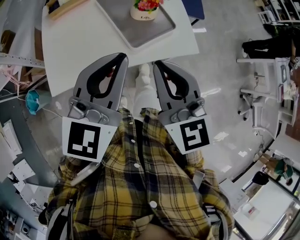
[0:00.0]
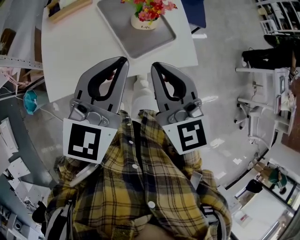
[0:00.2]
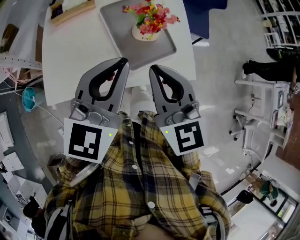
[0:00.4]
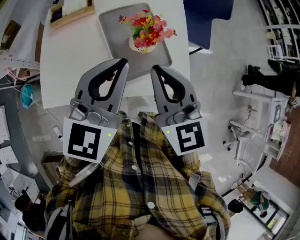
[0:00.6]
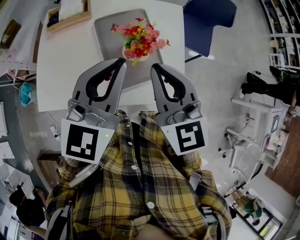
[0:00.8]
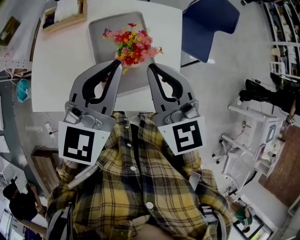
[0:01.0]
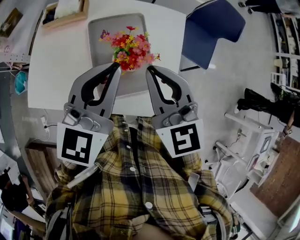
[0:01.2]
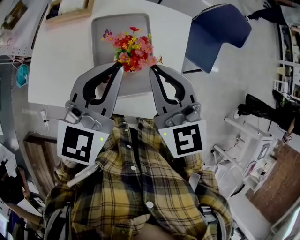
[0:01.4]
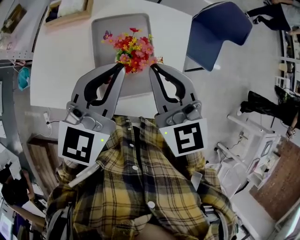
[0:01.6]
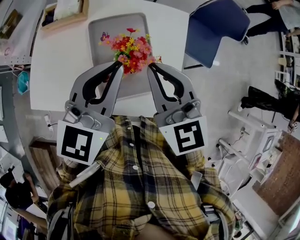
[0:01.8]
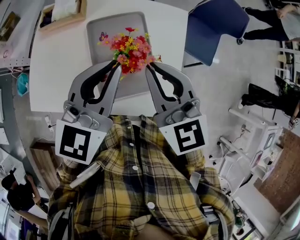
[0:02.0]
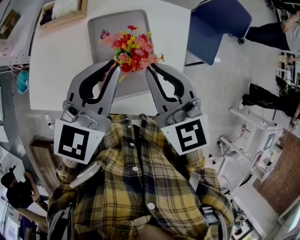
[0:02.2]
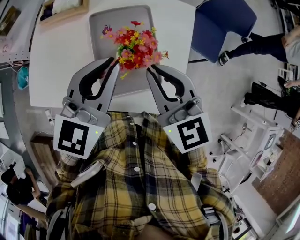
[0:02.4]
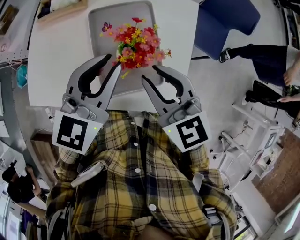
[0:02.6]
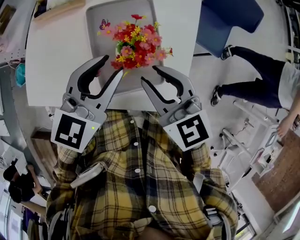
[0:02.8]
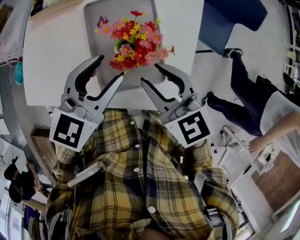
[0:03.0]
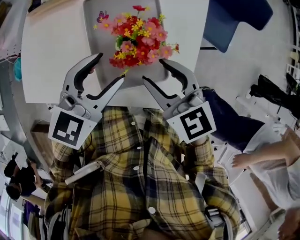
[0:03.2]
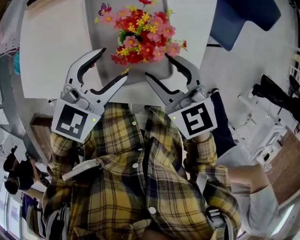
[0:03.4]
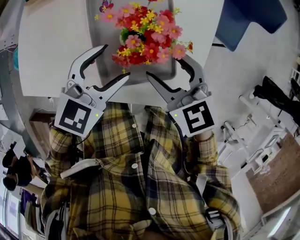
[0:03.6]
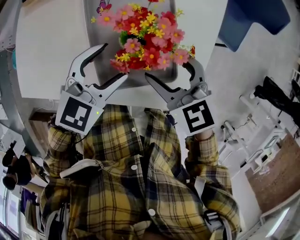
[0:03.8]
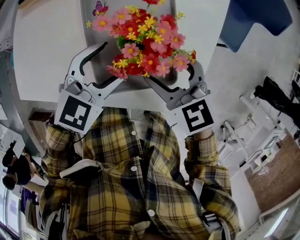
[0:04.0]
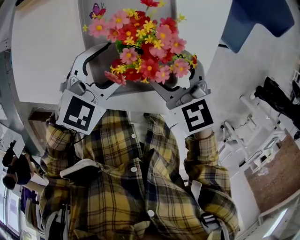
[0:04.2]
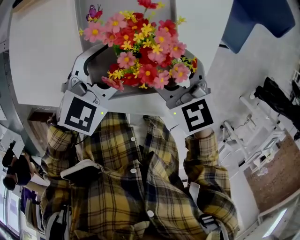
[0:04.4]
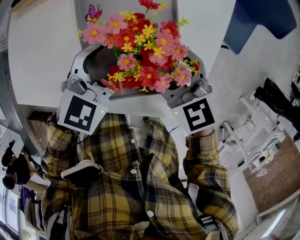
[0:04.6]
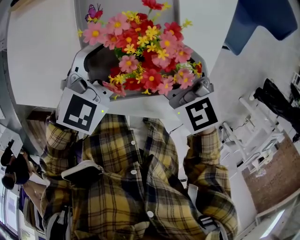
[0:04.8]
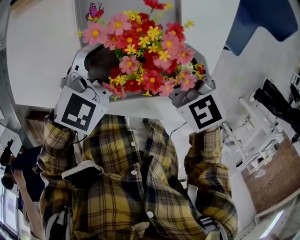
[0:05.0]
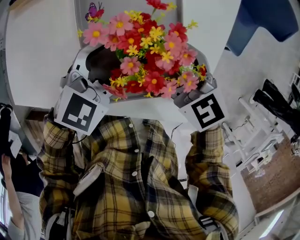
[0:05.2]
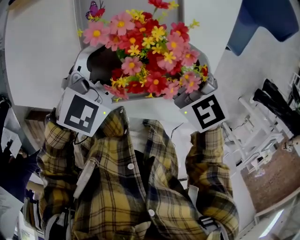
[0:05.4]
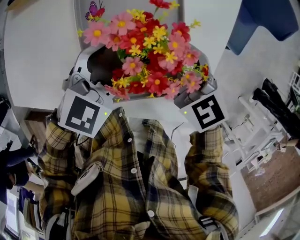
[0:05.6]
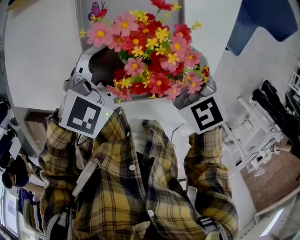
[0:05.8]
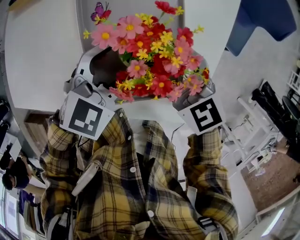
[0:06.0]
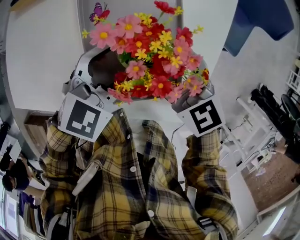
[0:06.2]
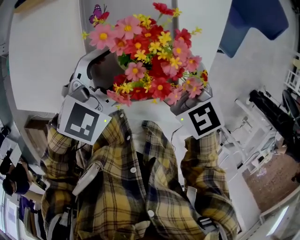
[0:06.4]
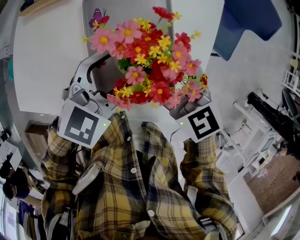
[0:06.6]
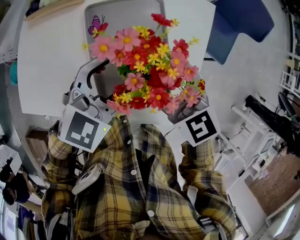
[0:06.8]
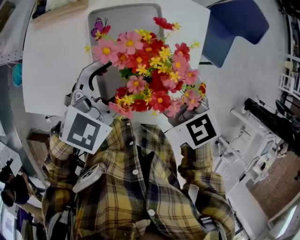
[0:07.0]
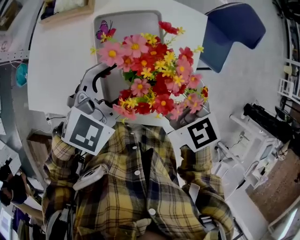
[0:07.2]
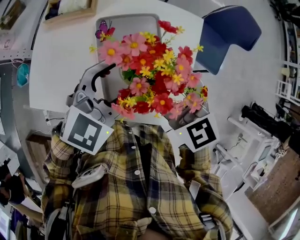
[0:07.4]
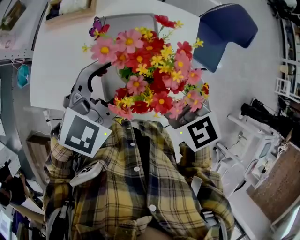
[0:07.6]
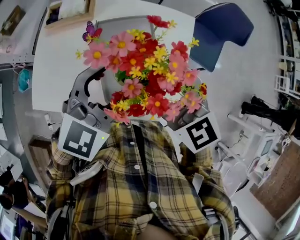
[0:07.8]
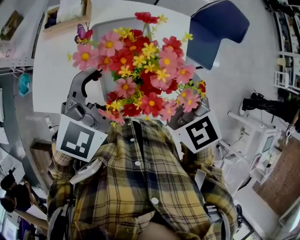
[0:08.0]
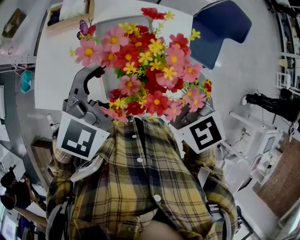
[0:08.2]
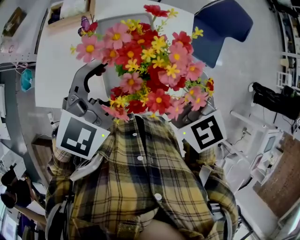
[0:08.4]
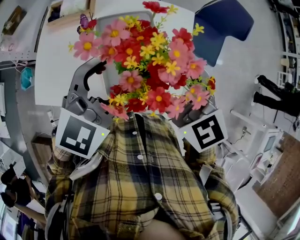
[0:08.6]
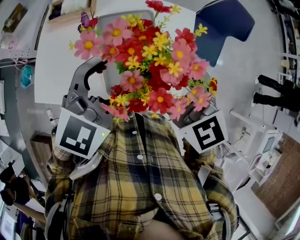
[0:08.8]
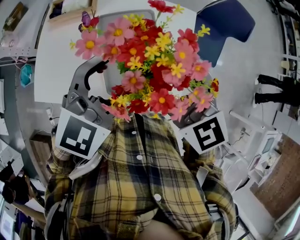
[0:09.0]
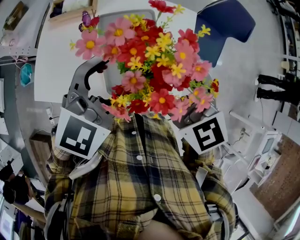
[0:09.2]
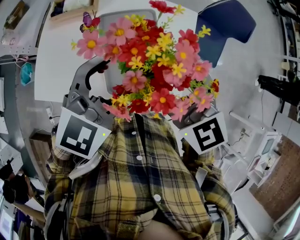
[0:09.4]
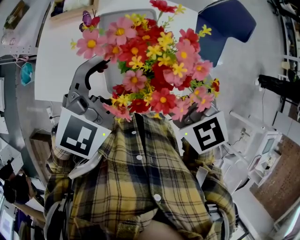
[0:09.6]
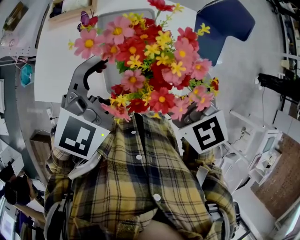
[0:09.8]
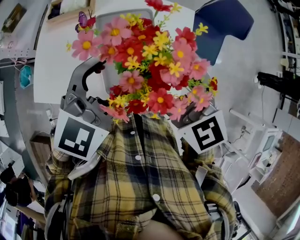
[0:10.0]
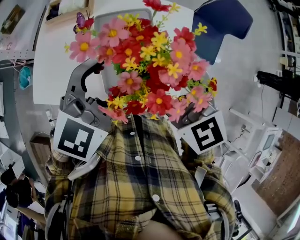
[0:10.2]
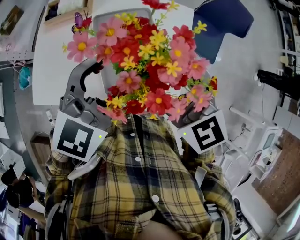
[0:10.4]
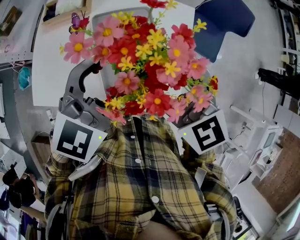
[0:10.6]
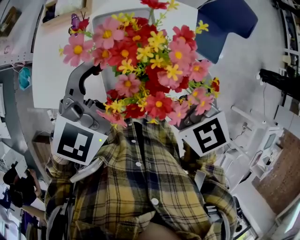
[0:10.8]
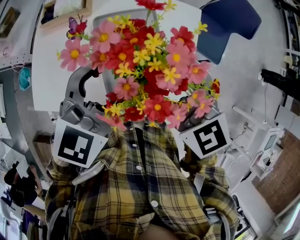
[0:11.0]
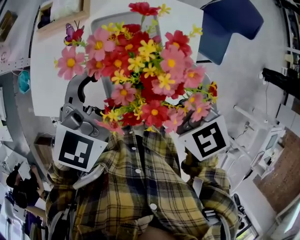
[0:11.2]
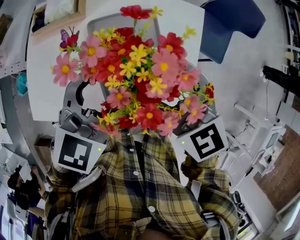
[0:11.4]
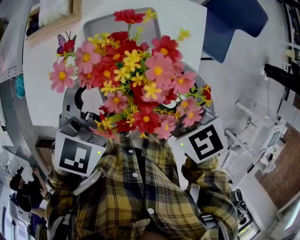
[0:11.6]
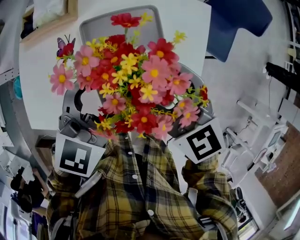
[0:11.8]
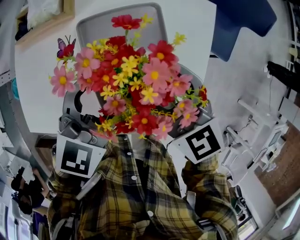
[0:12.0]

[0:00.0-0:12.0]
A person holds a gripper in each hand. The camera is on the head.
0:00.0 to 0:01.6: The grippers both shift forward and to the right by roughly 30 cm. The left gripper swivels roughly 20 degrees. Meanwhile the right gripper rotates some 30 degrees.
0:01.6 to 0:03.0: The grippers both shift downward by some 10 cm. The left gripper opens. Meanwhile the right gripper turns by approximately 20 degrees, and opens up.
0:03.0 to 0:04.4: Both grippers move downward, approximately 15 cm. The right gripper opens up. Meanwhile the left gripper rotates approximately 20 degrees, and opens its fingers.
0:04.4 to 0:07.6: The grippers move only a little.
0:07.6 to 0:10.4: Neither gripper changes place.
0:10.4 to 0:12.0: There are only small adjustments of the grippers.

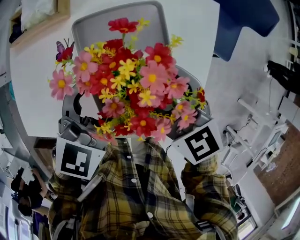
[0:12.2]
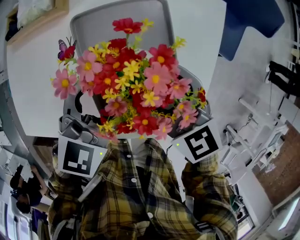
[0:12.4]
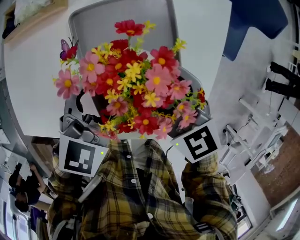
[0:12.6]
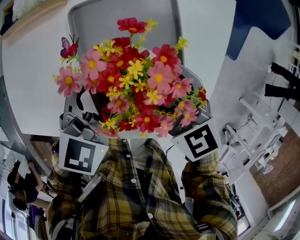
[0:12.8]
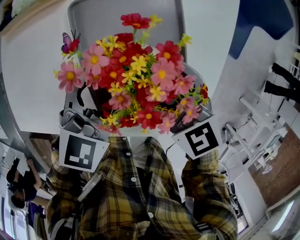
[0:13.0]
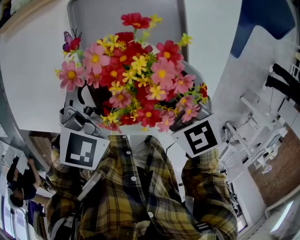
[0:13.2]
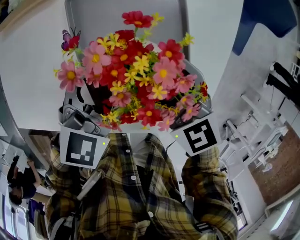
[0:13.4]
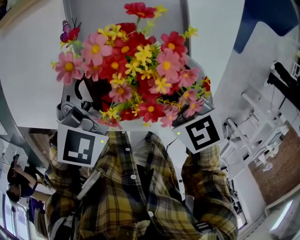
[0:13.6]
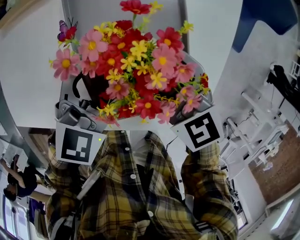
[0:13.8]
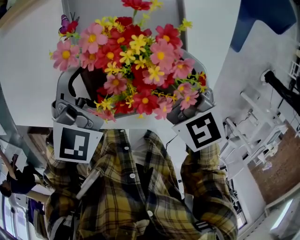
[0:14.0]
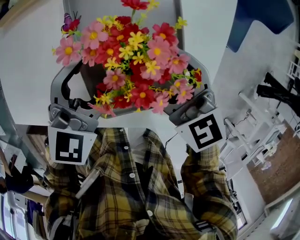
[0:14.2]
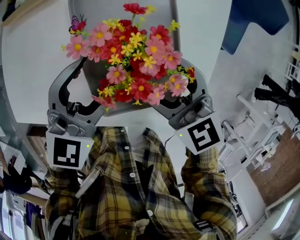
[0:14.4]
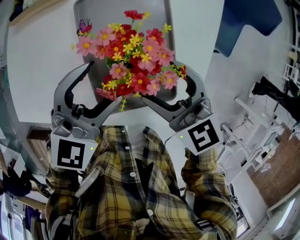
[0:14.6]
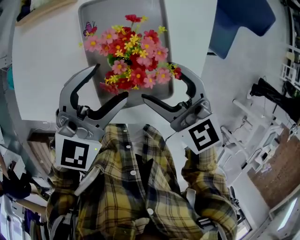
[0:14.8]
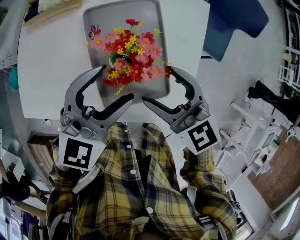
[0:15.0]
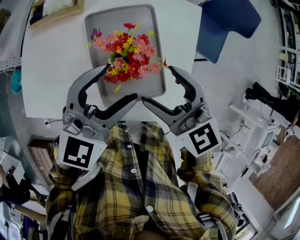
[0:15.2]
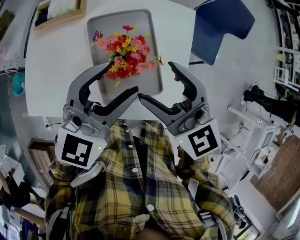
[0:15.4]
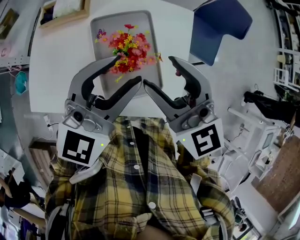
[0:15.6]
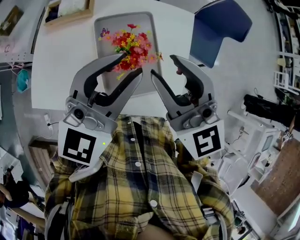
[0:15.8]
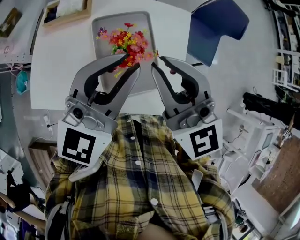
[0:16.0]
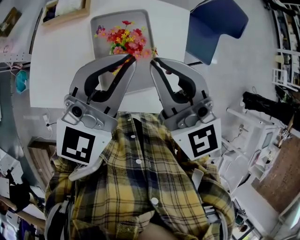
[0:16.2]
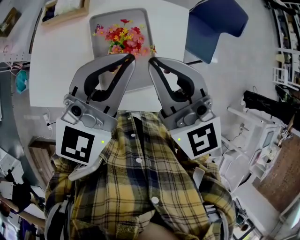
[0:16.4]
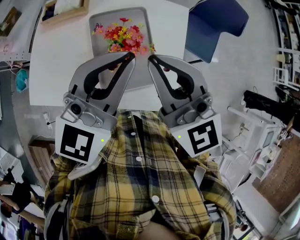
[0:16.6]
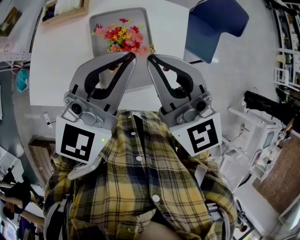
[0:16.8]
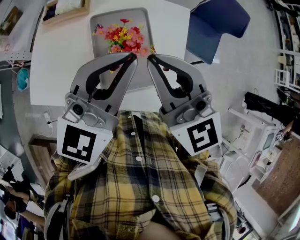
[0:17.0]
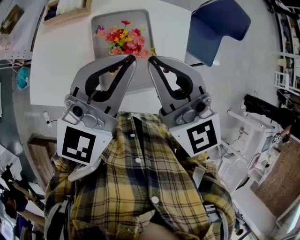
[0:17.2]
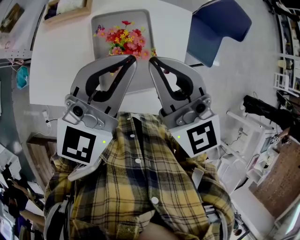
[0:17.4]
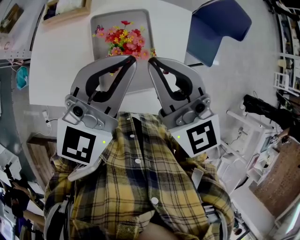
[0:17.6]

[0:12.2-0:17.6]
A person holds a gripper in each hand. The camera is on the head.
0:12.2 to 0:13.6: The grippers stay close to where they were, moving slightly.
0:13.6 to 0:15.0: The grippers both shift upward by approximately 10 cm.
0:15.0 to 0:16.2: Both grippers move upward, roughly 20 cm. The left gripper changes its angle by roughly 20 degrees, and closes up. The right gripper turns by about 30 degrees, and closes.
0:16.2 to 0:17.6: The grippers stay close to where they were, moving slightly.

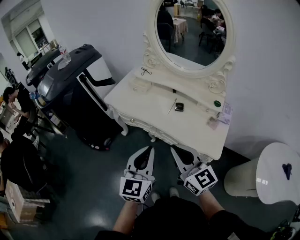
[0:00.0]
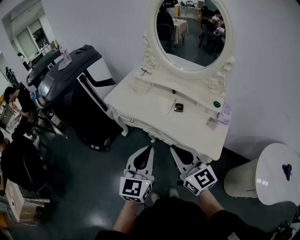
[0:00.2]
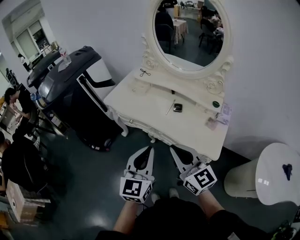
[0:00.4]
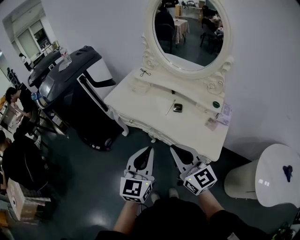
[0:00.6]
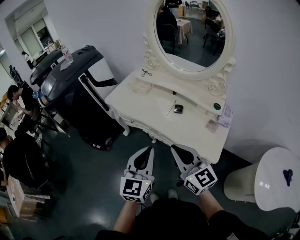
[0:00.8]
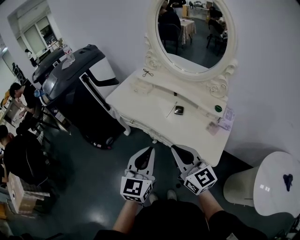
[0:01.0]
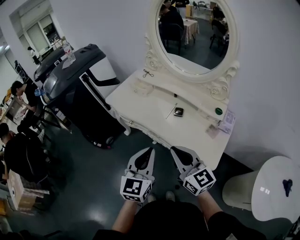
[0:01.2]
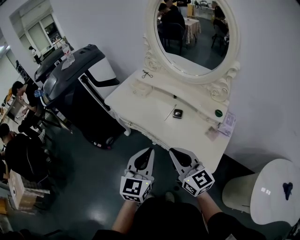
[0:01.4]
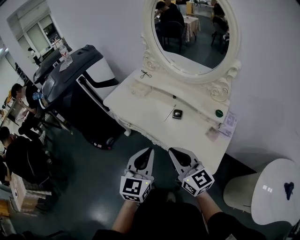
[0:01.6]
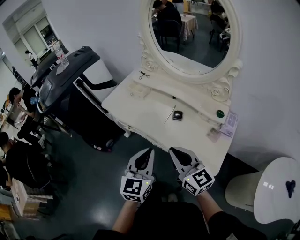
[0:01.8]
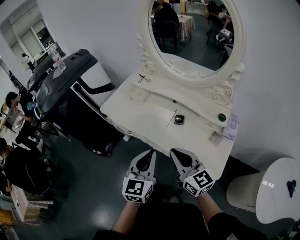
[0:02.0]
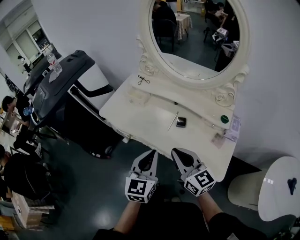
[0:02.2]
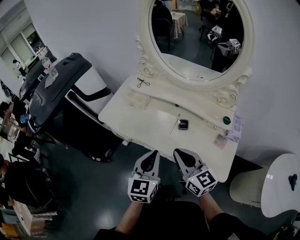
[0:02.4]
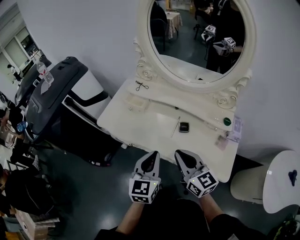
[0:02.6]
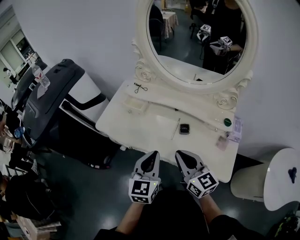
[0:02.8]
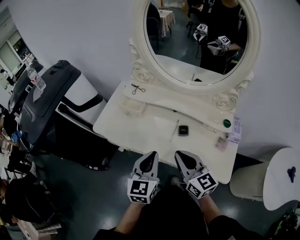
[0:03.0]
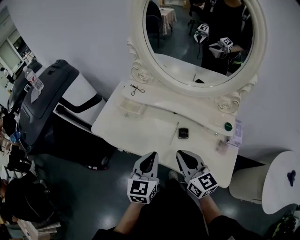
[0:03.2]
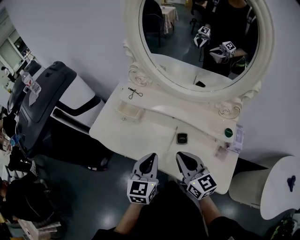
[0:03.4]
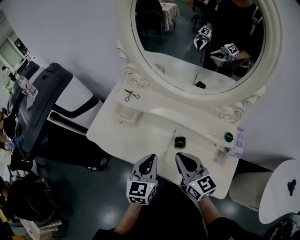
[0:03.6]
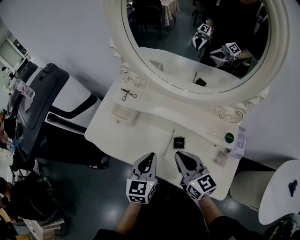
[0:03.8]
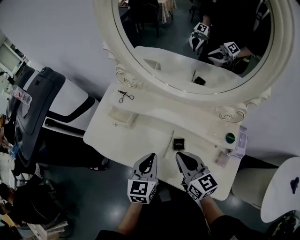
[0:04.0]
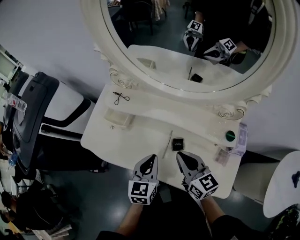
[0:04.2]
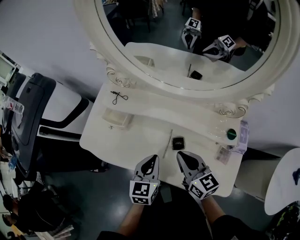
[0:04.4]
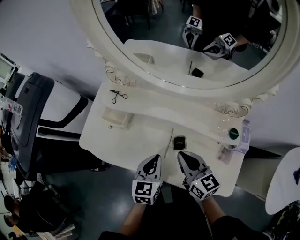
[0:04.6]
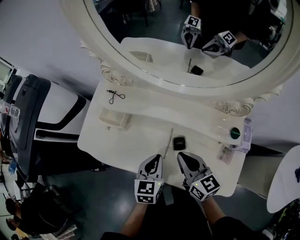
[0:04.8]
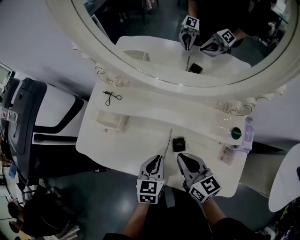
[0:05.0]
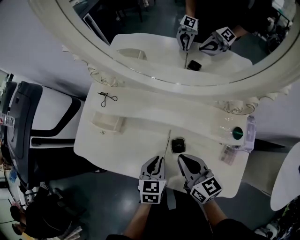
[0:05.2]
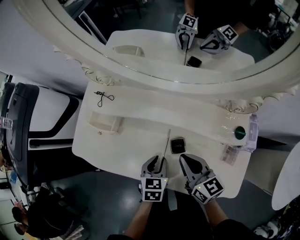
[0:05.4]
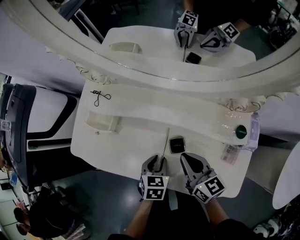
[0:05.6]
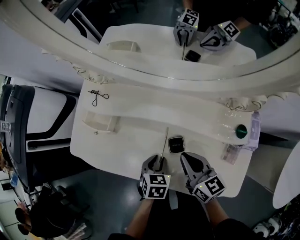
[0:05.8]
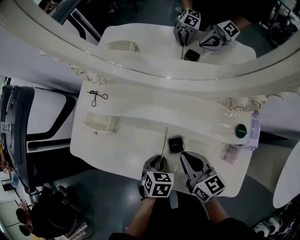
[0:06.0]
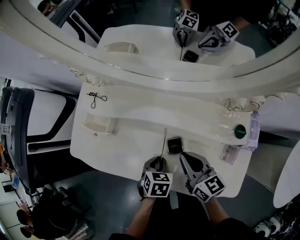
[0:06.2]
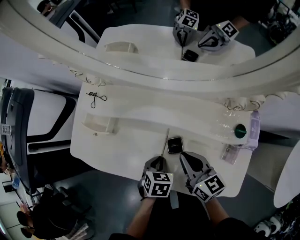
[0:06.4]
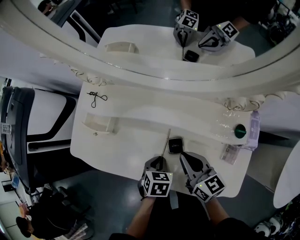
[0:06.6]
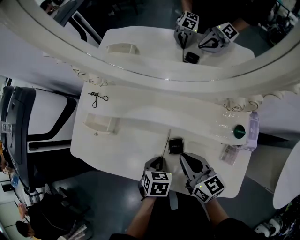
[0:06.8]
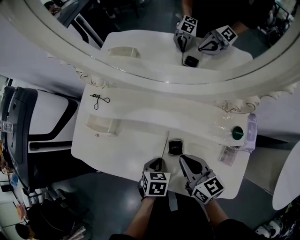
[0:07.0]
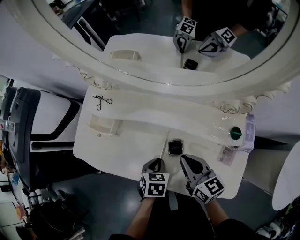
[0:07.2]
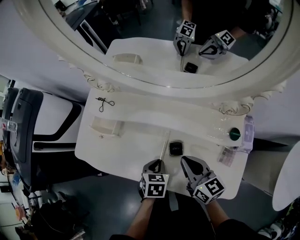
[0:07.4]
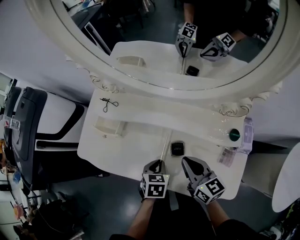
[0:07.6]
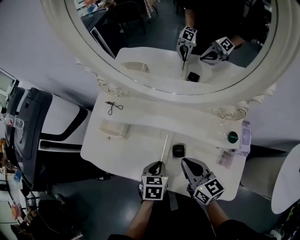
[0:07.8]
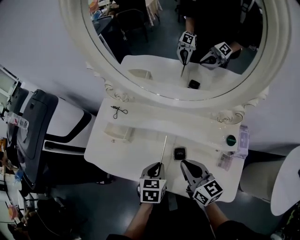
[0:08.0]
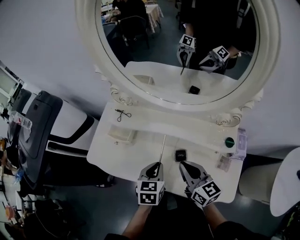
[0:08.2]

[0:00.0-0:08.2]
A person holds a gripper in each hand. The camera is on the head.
0:00.0 to 0:01.6: Both grippers travel together to the right and forward, approximately 10 cm.
0:01.6 to 0:03.2: The grippers both shift forward by about 20 cm.
0:03.2 to 0:05.0: The right gripper shifts approximately 15 cm forward, downward and to the right, while the left gripper travels downward, forward and to the right by approximately 20 cm, and swivels approximately 20 degrees.
0:05.0 to 0:06.6: The left gripper heads downward, covering approximately 10 cm, and changes its angle by roughly 30 degrees. Meanwhile the right gripper heads downward, covering approximately 5 cm.
0:06.6 to 0:08.2: Both grippers travel together upward, about 15 cm. The left gripper rotates roughly 20 degrees.
